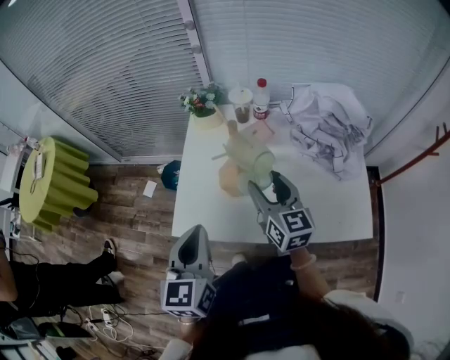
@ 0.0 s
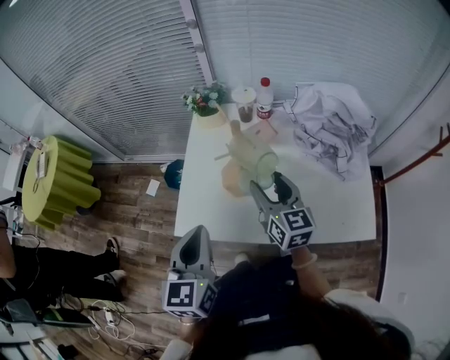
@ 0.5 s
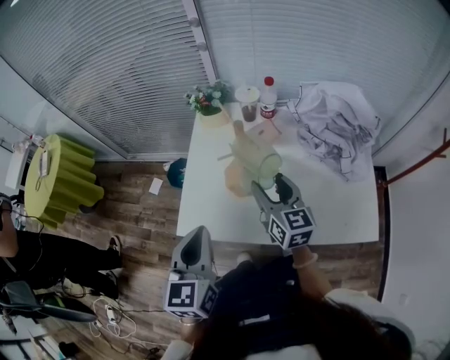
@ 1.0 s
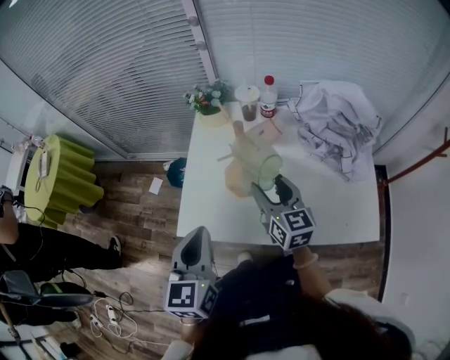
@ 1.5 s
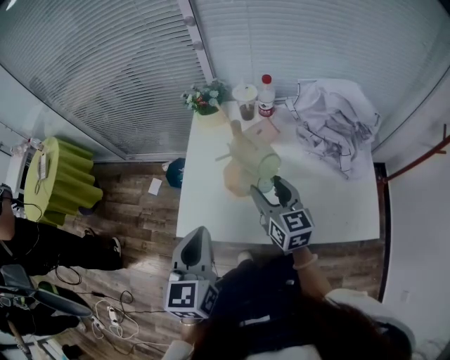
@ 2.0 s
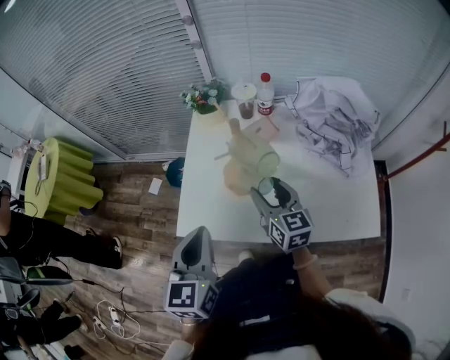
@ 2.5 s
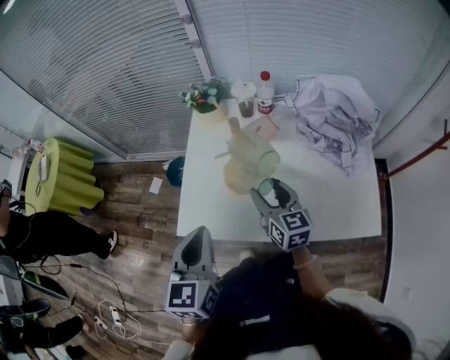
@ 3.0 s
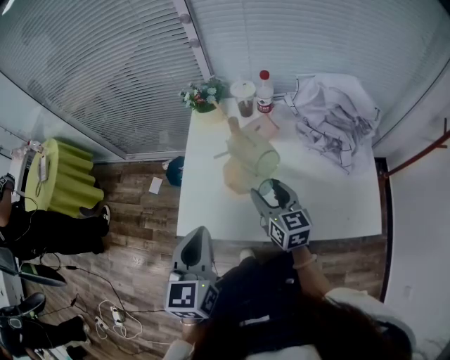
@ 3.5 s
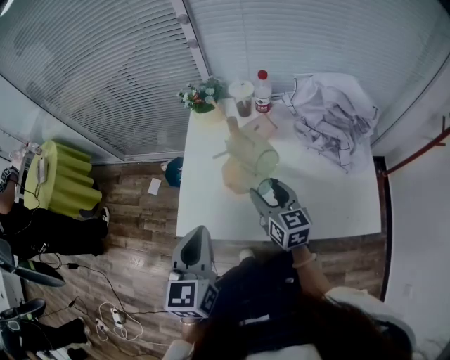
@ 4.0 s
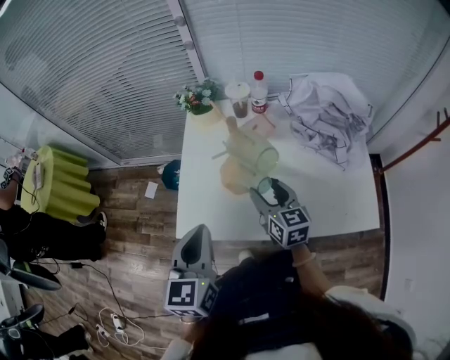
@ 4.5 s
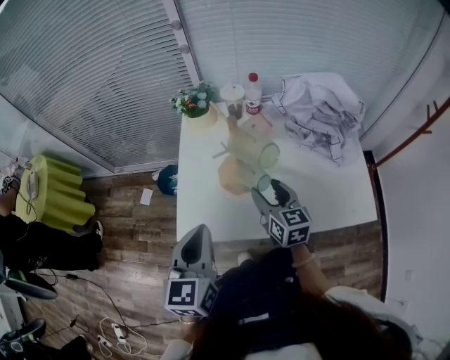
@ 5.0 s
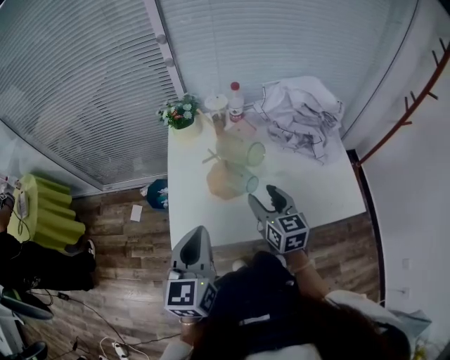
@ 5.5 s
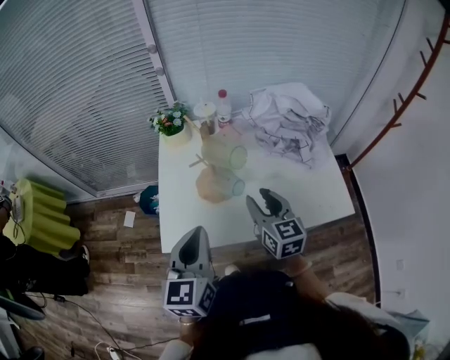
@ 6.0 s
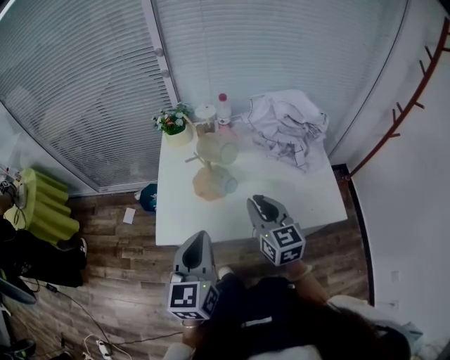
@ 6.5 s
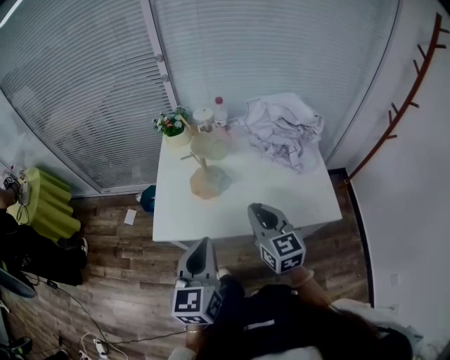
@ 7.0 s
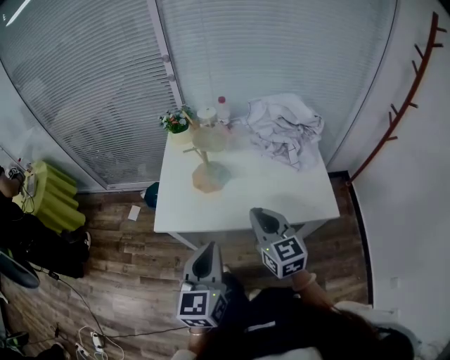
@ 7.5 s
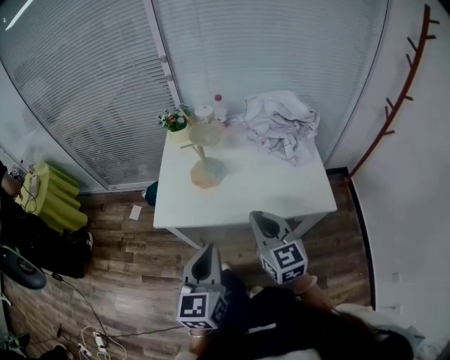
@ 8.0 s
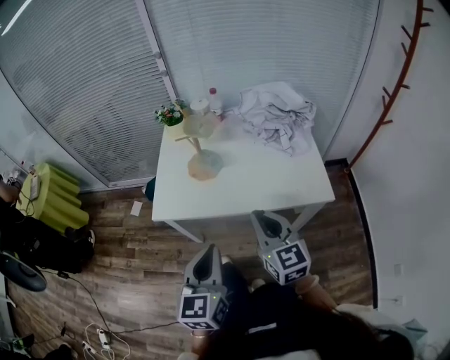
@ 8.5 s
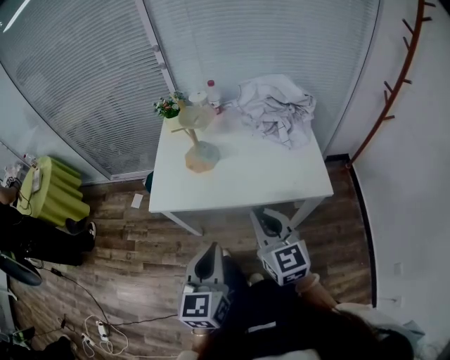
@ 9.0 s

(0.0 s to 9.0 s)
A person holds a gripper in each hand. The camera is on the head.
0.0 s - 2.0 s: The grippers stay close to where they were, moving slightly.
2.0 s - 4.5 s: The grippers stay close to where they were, moving slightly.
4.5 s - 7.0 s: The right gripper goes roughly 20 cm backward, upward and to the right, and closes its fingers. Meanwhile the left gripper shifts approximately 15 cm backward and to the right.
7.0 s - 9.0 s: The left gripper heads backward and to the right, covering roughly 15 cm. Meanwhile the right gripper travels backward by about 15 cm.

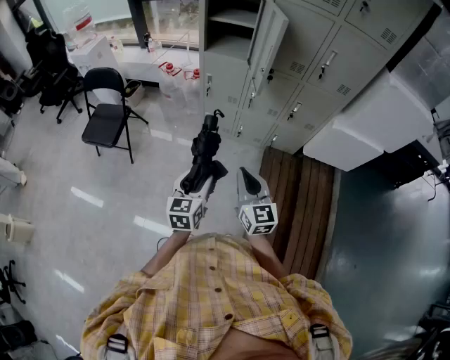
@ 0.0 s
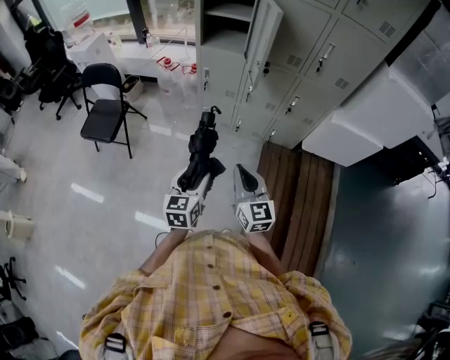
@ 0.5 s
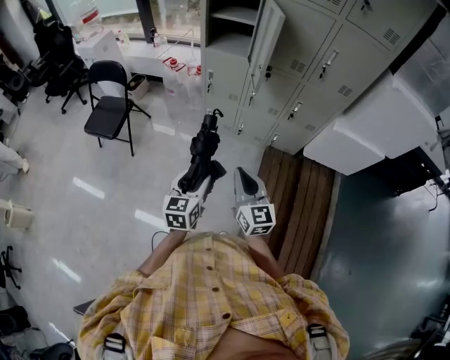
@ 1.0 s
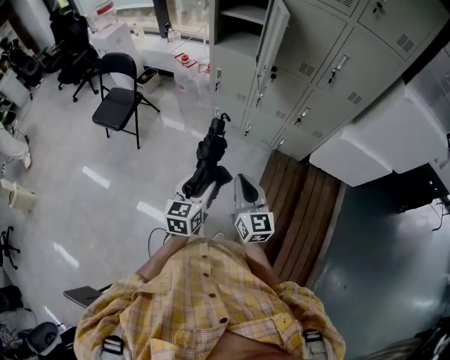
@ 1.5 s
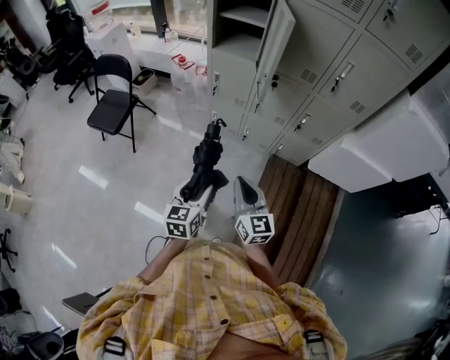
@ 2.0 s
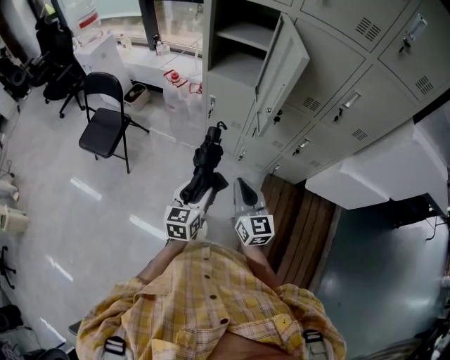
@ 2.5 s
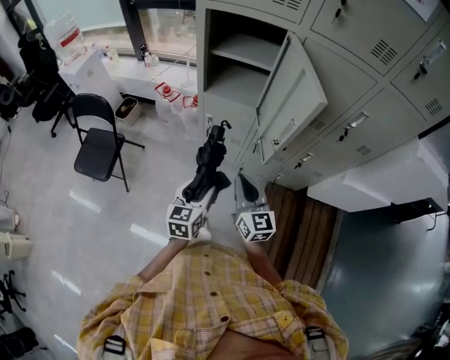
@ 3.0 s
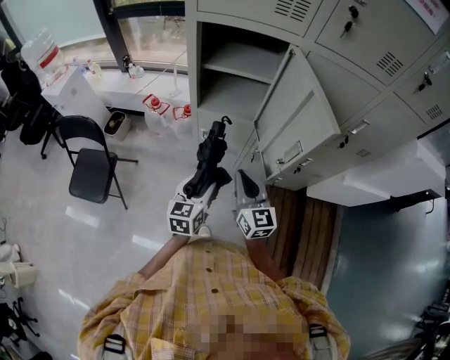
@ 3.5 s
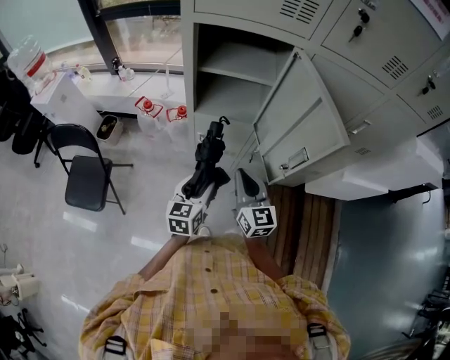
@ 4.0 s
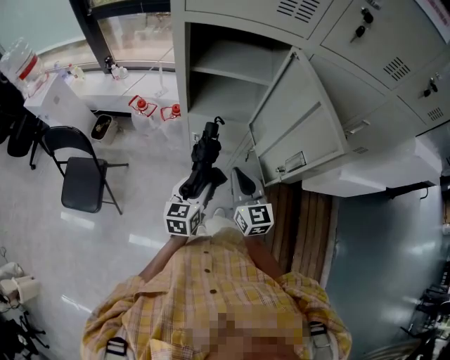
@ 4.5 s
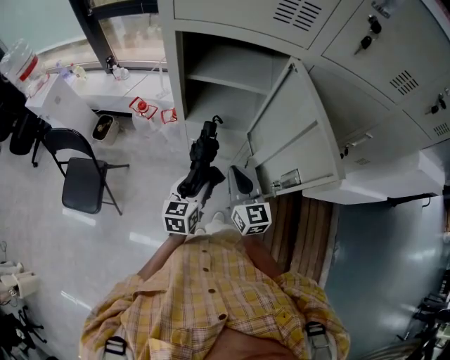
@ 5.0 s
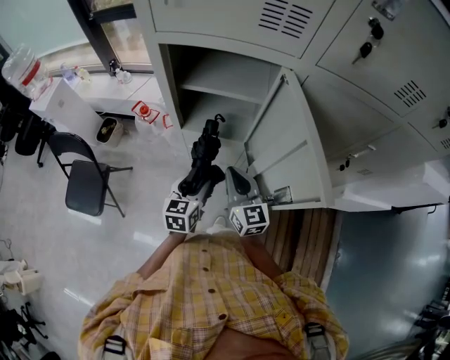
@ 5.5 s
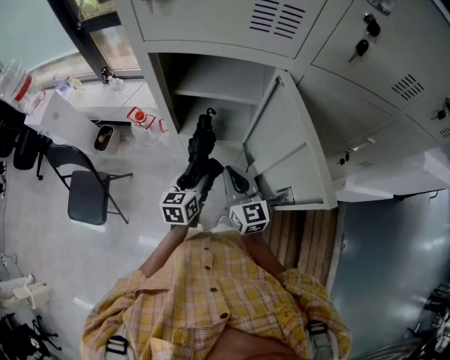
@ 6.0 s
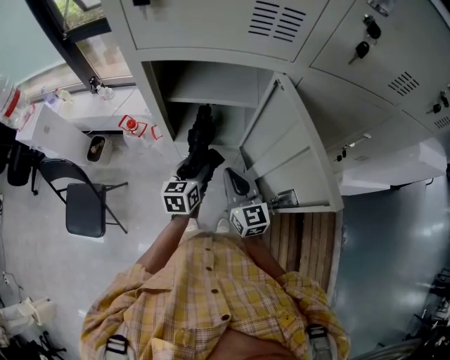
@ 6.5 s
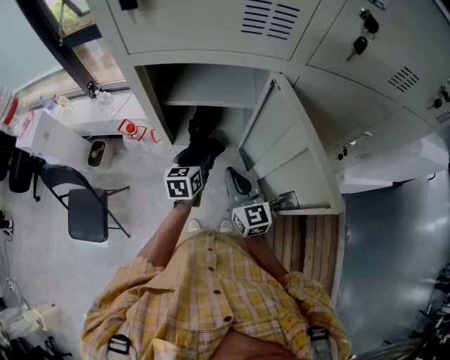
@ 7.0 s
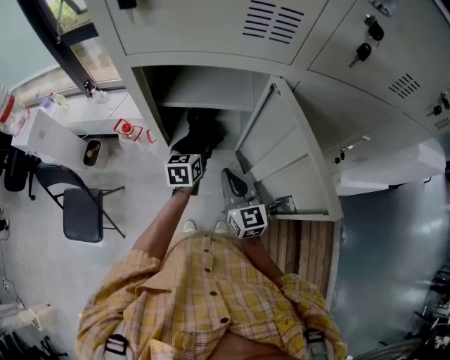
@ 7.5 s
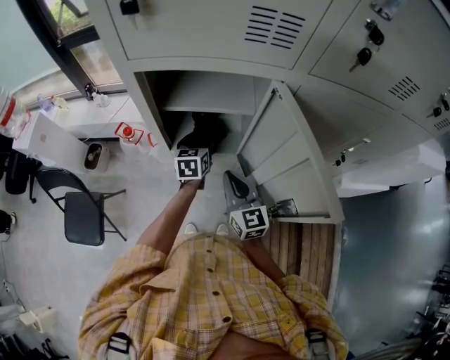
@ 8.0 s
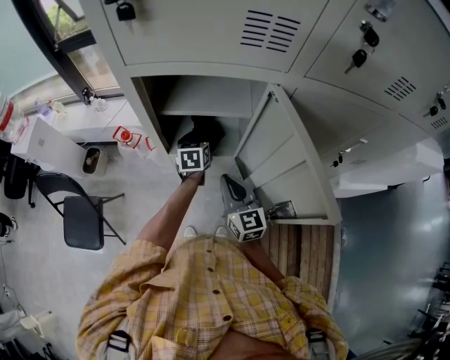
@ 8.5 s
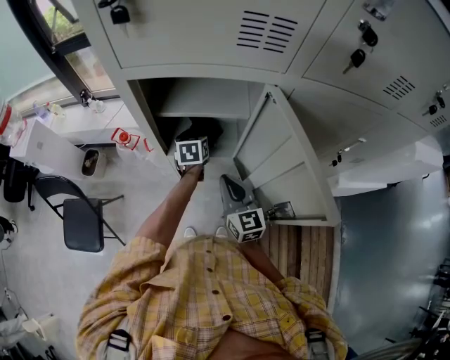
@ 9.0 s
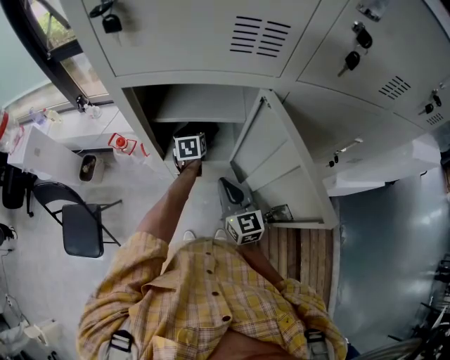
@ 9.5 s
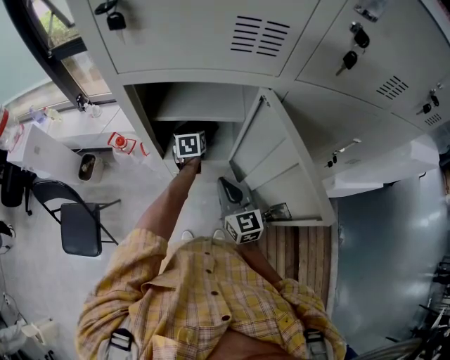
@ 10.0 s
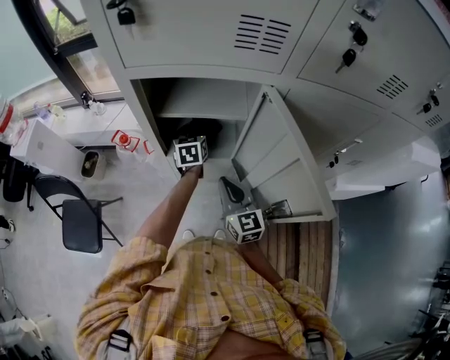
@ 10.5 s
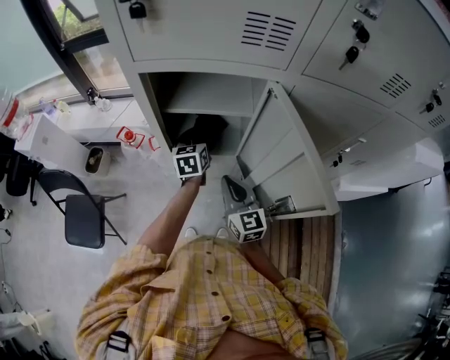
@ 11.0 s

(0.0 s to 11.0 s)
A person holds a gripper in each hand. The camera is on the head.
0.0 s - 2.0 s: The two grippers go about 5 cm to the right.
2.0 s - 3.5 s: Both grippers move forward, roughly 40 cm.
3.5 s - 5.5 s: The two grippers go approximately 15 cm forward.
5.5 s - 7.5 s: The left gripper heads forward, covering roughly 20 cm.
7.5 s - 9.0 s: The left gripper travels forward by about 5 cm.
9.0 s - 11.0 s: The left gripper ends up approximately 5 cm from where it was.

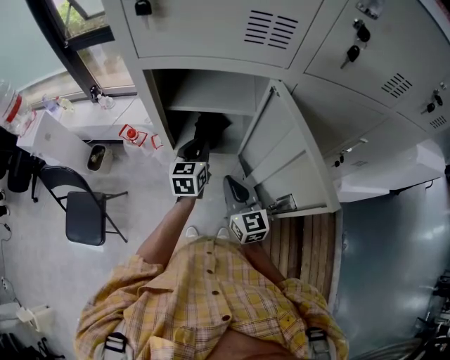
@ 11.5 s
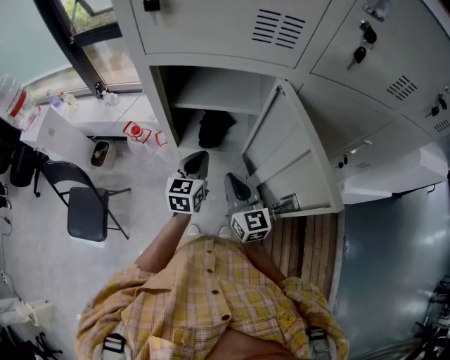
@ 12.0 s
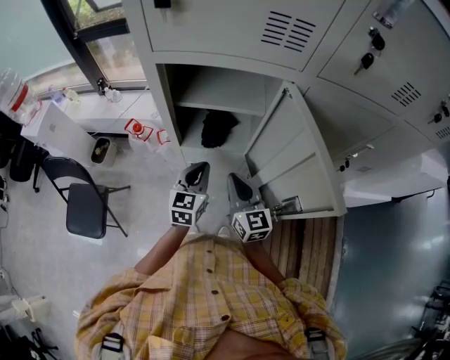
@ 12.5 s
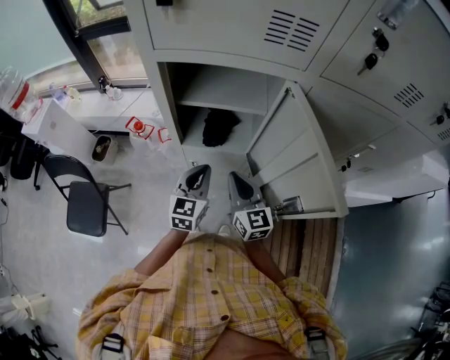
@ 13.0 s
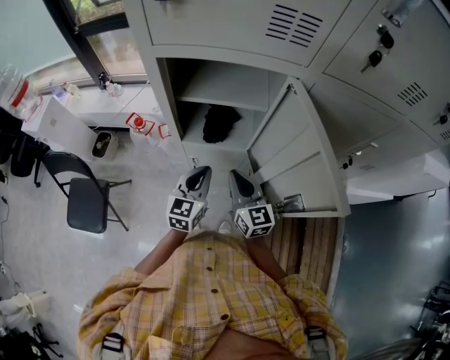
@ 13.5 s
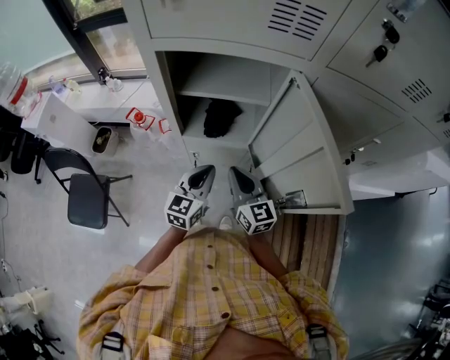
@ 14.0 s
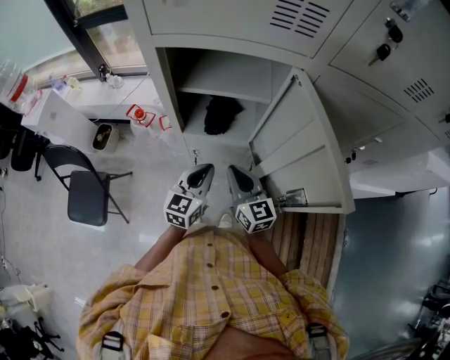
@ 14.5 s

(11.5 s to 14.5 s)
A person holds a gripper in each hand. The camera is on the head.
11.5 s - 13.0 s: The left gripper is displaced backward by about 10 cm.
13.0 s - 14.5 s: The grippers make only small movements.

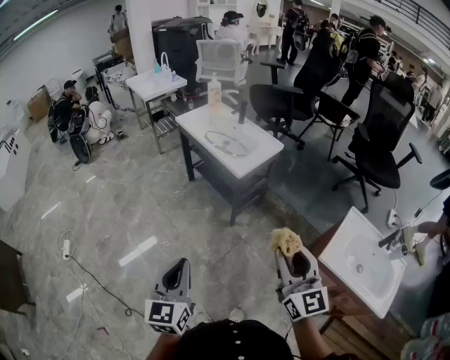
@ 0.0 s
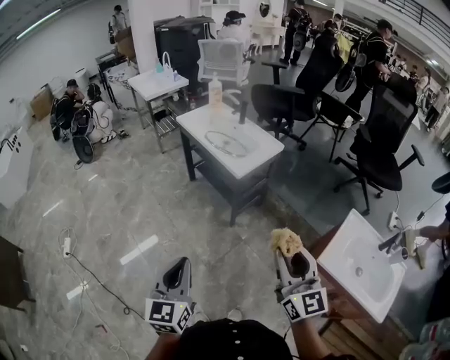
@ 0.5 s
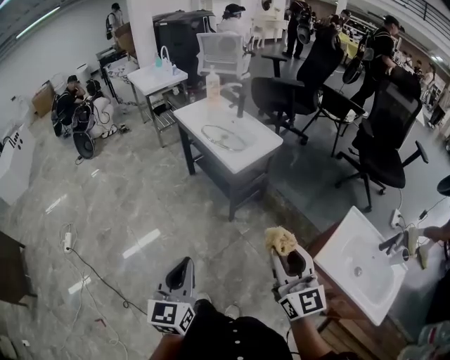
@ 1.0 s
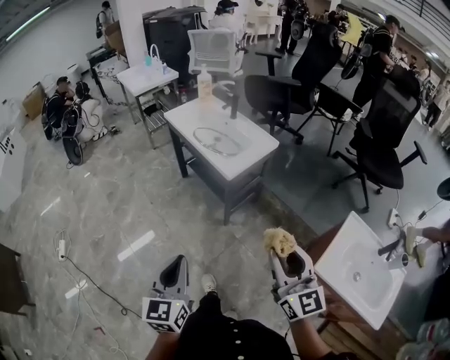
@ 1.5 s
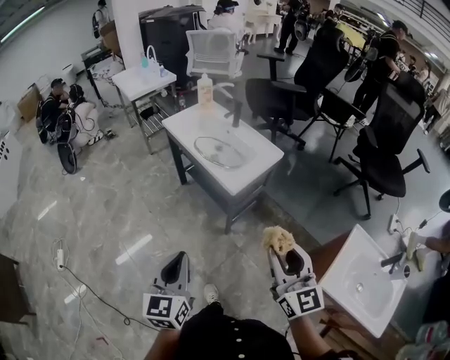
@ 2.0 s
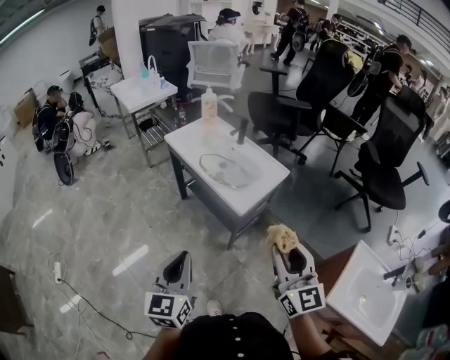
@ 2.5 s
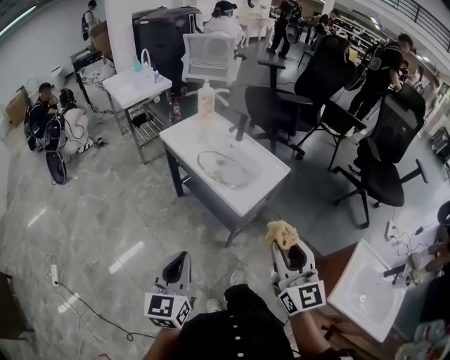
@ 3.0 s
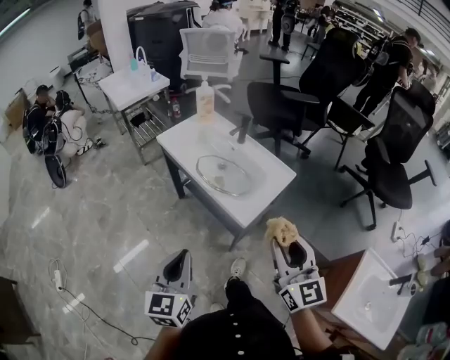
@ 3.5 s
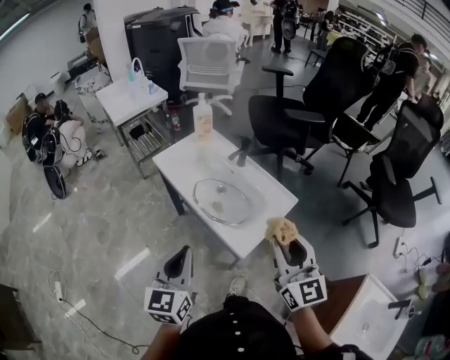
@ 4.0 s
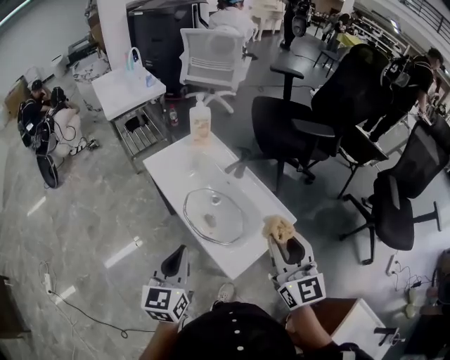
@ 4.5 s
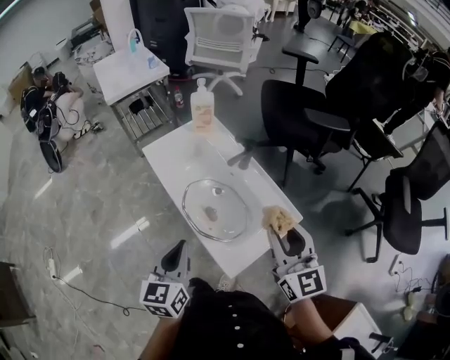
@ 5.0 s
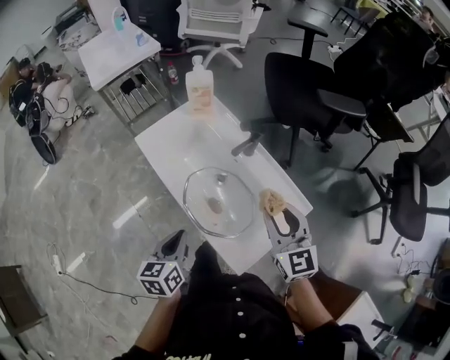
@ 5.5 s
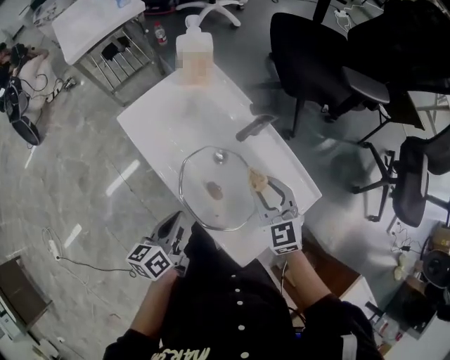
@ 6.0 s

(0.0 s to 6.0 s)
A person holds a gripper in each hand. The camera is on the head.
0.0 s - 2.0 s: Both grippers travel together forward, approximately 15 cm.
2.0 s - 4.0 s: The grippers both shift forward by roughly 30 cm.
4.0 s - 6.0 s: The grippers both shift forward and downward by roughly 35 cm. The left gripper turns by roughly 40 degrees, while the right gripper angles its fingers downward, by some 30 degrees.
